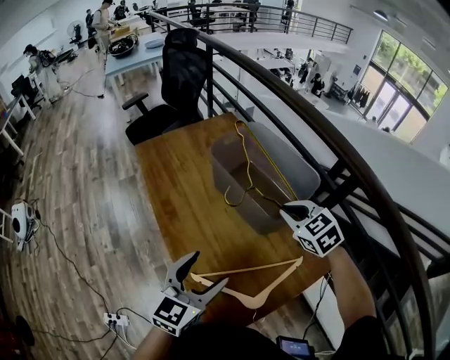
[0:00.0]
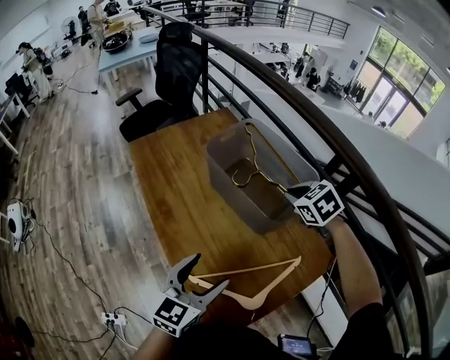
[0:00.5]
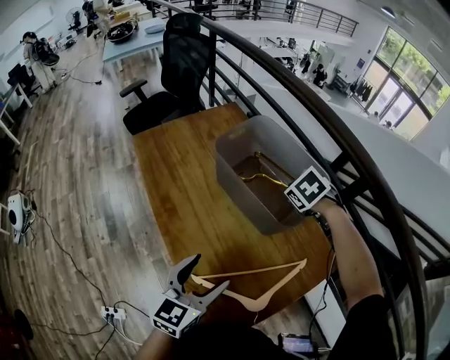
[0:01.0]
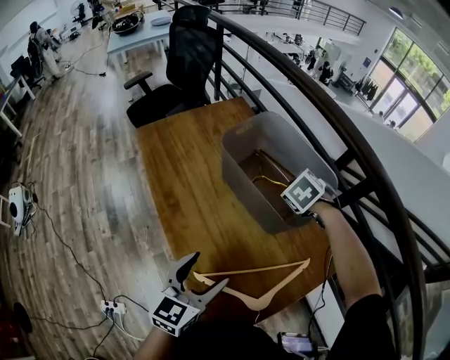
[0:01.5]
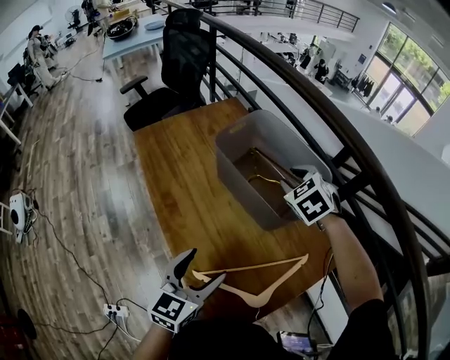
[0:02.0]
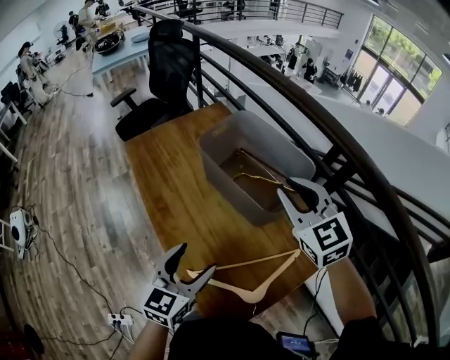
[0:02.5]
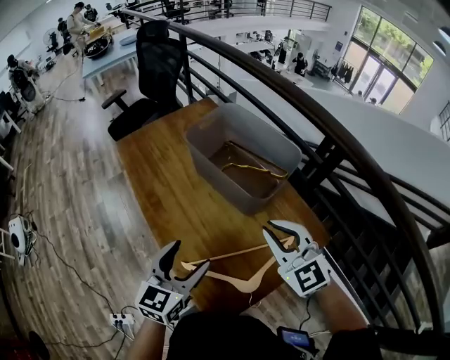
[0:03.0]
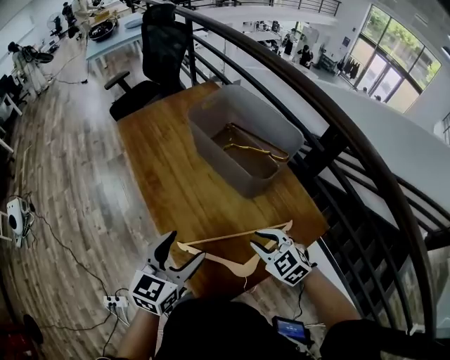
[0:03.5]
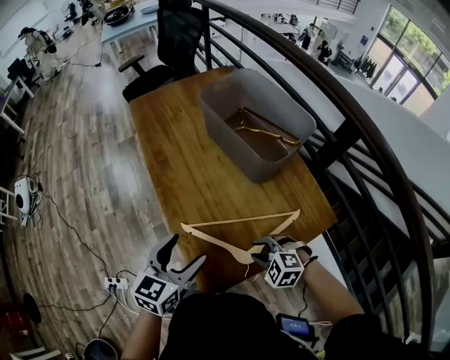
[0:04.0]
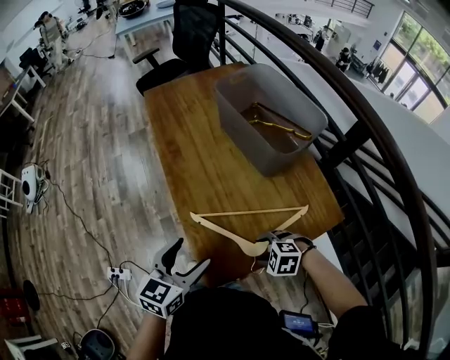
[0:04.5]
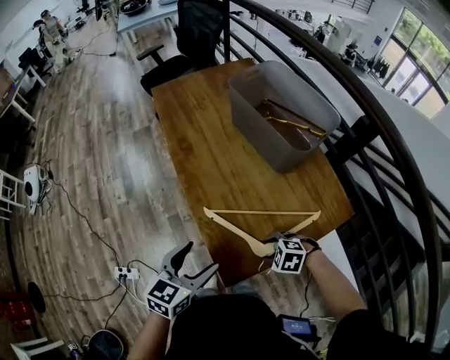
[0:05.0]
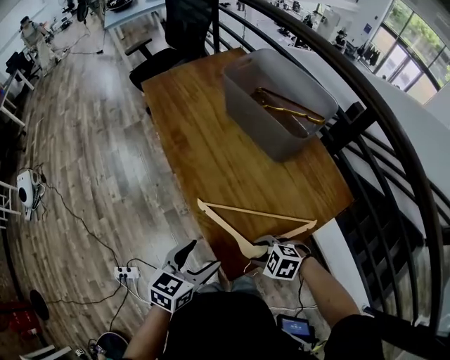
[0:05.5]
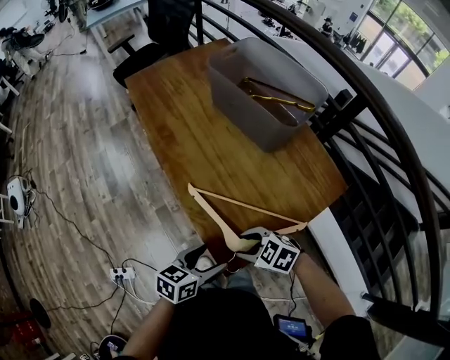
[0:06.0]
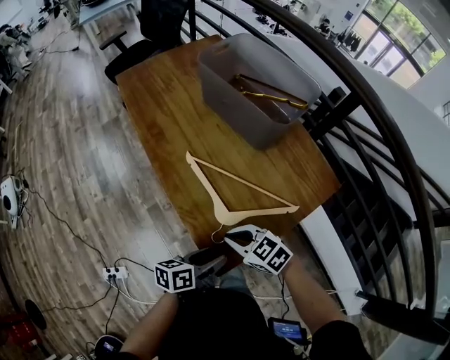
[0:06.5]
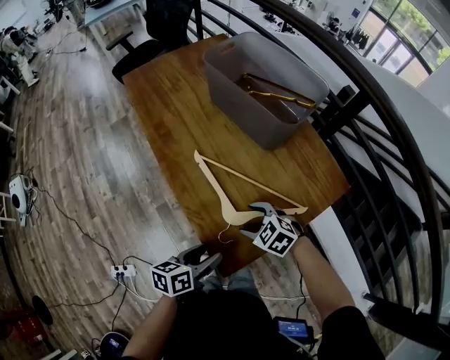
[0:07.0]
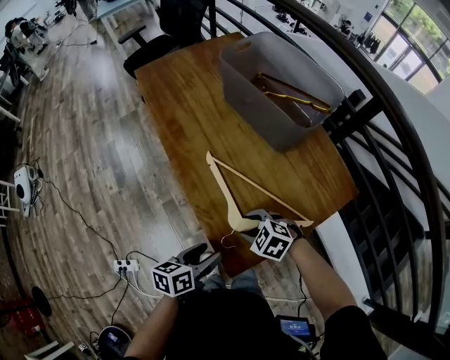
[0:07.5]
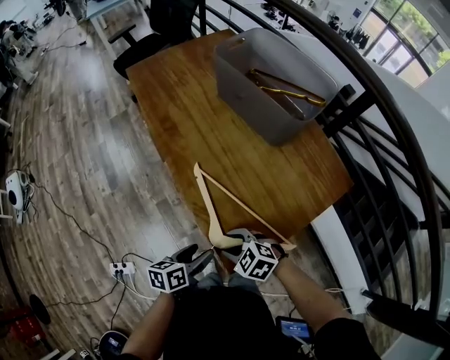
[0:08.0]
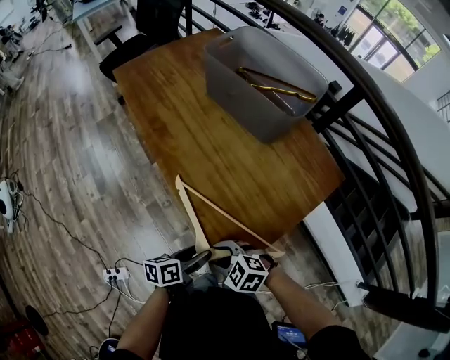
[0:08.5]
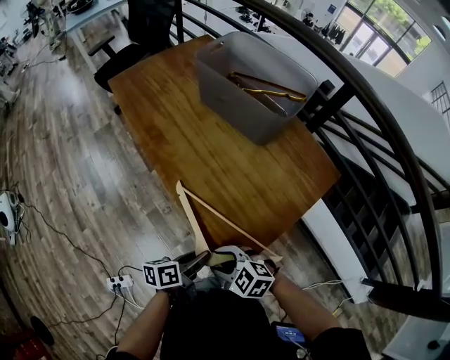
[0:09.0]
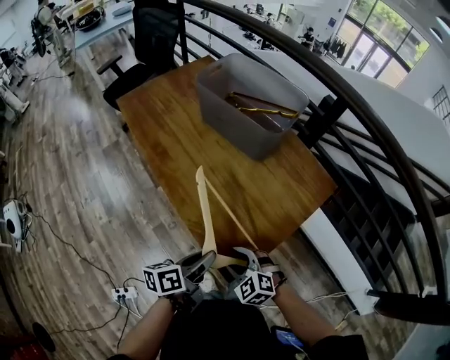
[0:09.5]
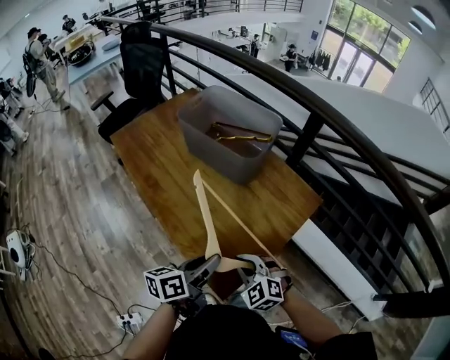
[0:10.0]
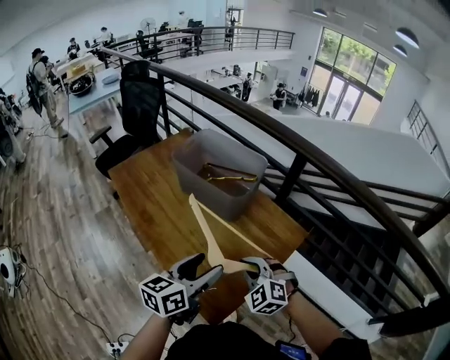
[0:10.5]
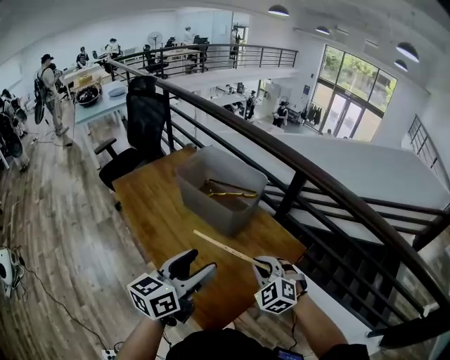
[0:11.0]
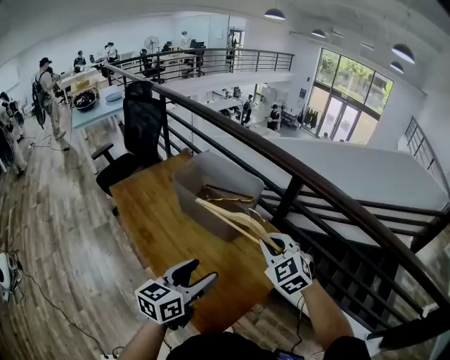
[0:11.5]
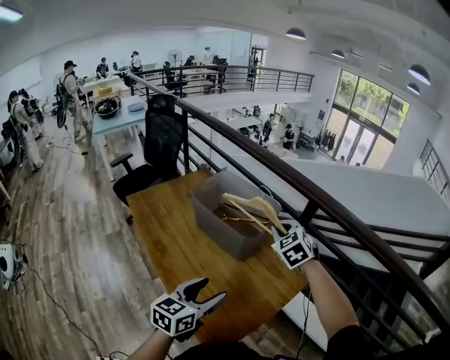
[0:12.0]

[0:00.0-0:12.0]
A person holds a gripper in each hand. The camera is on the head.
0:00.0 to 0:02.0: The right gripper heads forward, covering roughly 5 cm, and opens up.
0:02.0 to 0:04.0: The left gripper shifts by roughly 10 cm. Meanwhile the right gripper shifts by approximately 40 cm, and turns by some 40 degrees.
0:04.0 to 0:06.0: The right gripper ends up some 15 cm from where it was, and rotates some 30 degrees, while the left gripper travels downward by some 10 cm, and rotates roughly 30 degrees.
0:06.0 to 0:08.0: The left gripper shifts roughly 5 cm downward, and changes its angle by some 20 degrees. Meanwhile the right gripper moves about 5 cm, and closes, then reopens.
0:08.0 to 0:10.0: The right gripper ends up roughly 15 cm from where it was, changes its angle by roughly 40 degrees, and closes its fingers. The left gripper shifts about 15 cm upward, changes its angle by roughly 20 degrees, and closes.
0:10.0 to 0:12.0: The left gripper shifts about 10 cm upward and forward, turns by approximately 40 degrees, and opens its fingers. Meanwhile the right gripper heads forward and upward, covering roughly 35 cm, and changes its angle by about 20 degrees.

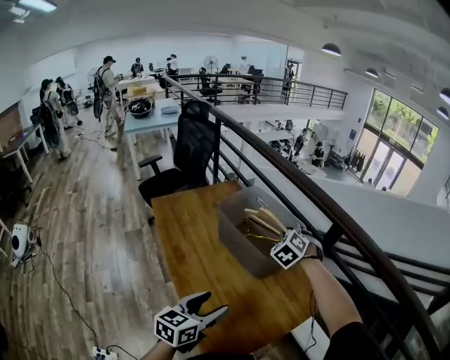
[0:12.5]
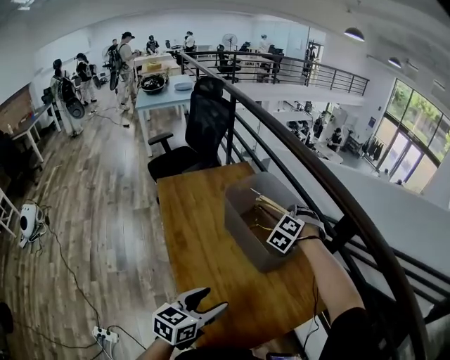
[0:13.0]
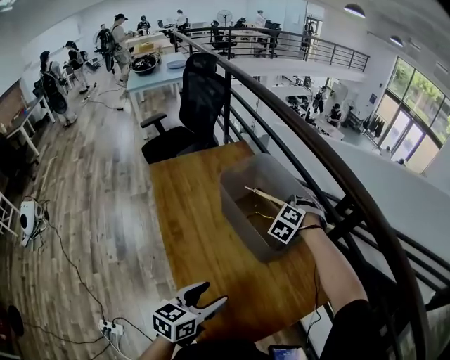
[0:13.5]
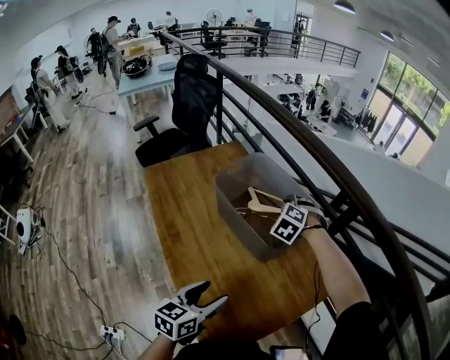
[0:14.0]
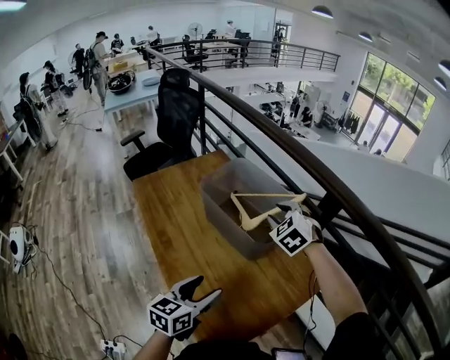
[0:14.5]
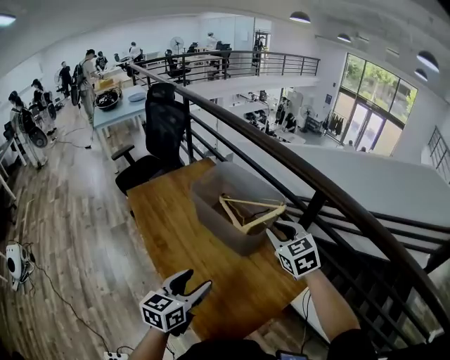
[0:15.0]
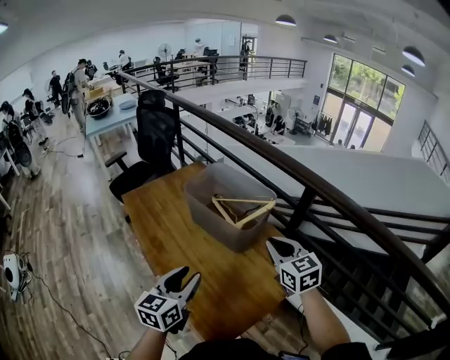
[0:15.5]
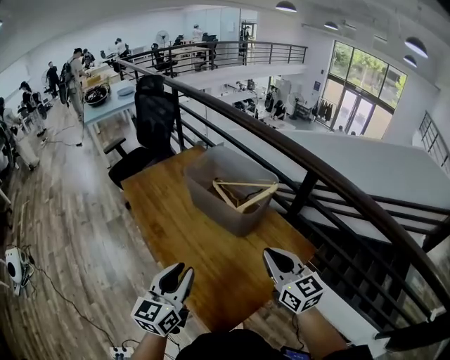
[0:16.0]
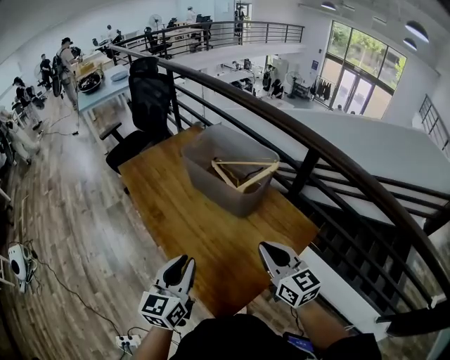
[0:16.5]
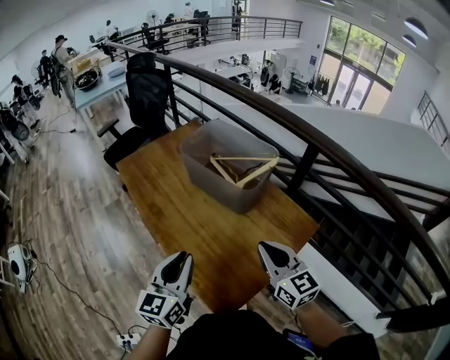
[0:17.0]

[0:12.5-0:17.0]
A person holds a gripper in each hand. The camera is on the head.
0:12.5 to 0:14.5: The left gripper is displaced forward by some 5 cm, while the right gripper reaches about 10 cm downward, then returns, and opens.
0:14.5 to 0:17.0: The right gripper shifts approximately 30 cm backward, tips its fingers upward by about 30 degrees, and closes up. Meanwhile the left gripper travels backward and to the left by some 10 cm, swivels roughly 20 degrees, and closes up.

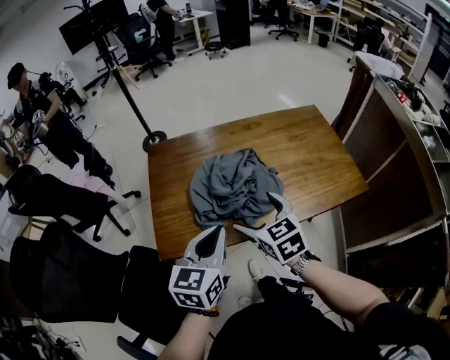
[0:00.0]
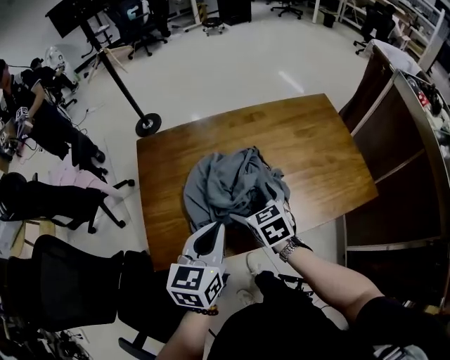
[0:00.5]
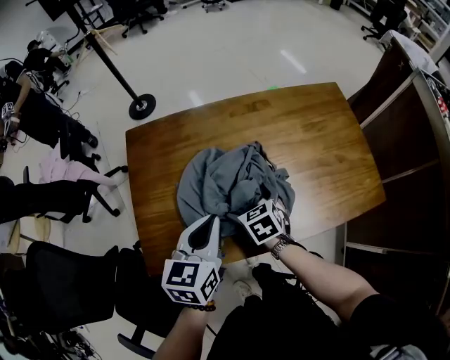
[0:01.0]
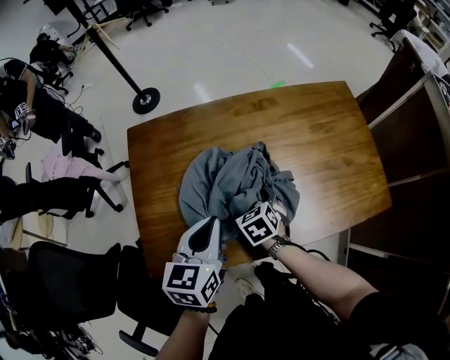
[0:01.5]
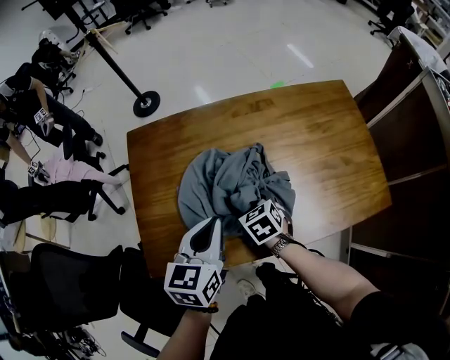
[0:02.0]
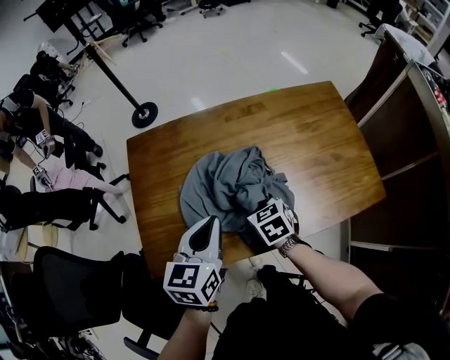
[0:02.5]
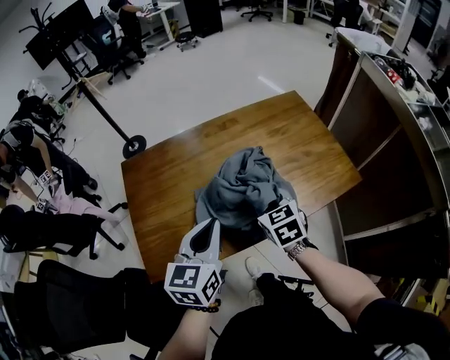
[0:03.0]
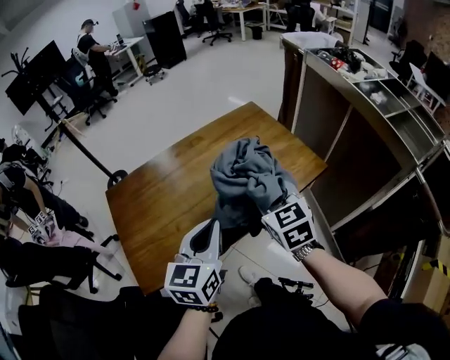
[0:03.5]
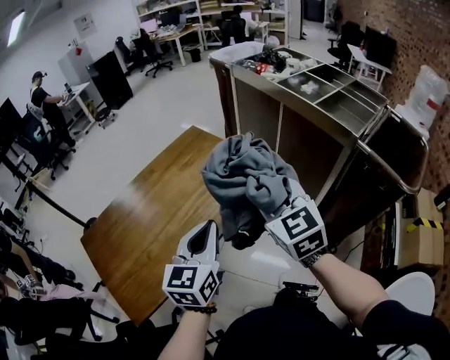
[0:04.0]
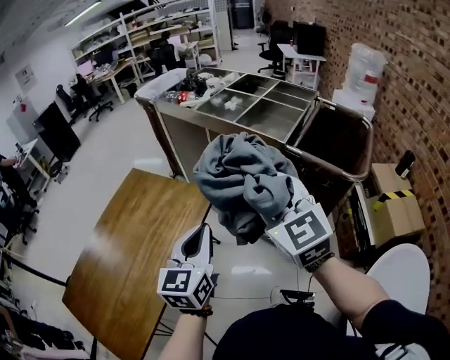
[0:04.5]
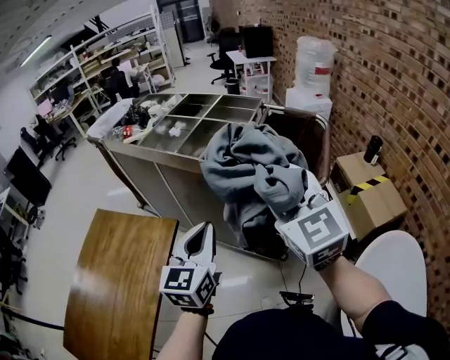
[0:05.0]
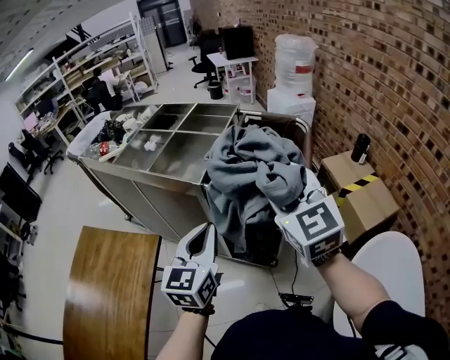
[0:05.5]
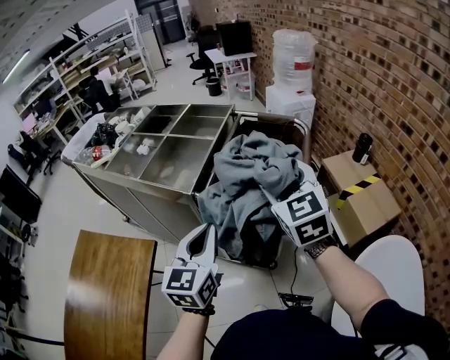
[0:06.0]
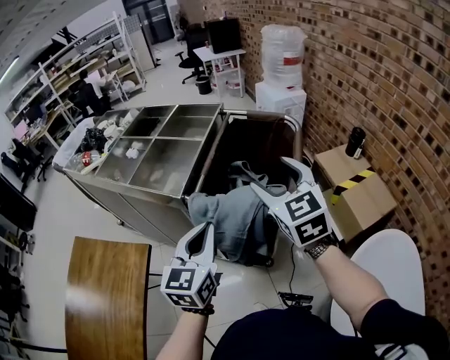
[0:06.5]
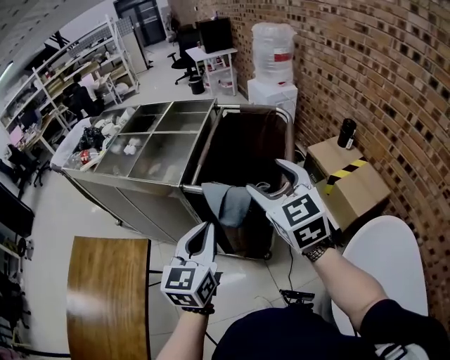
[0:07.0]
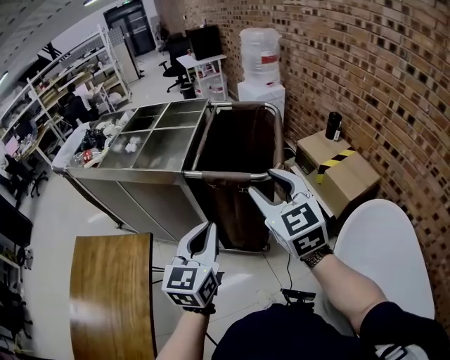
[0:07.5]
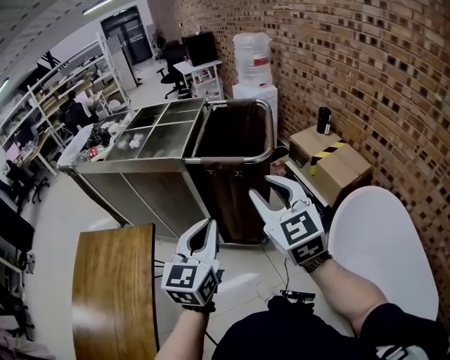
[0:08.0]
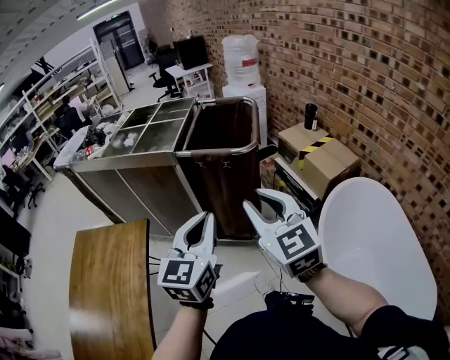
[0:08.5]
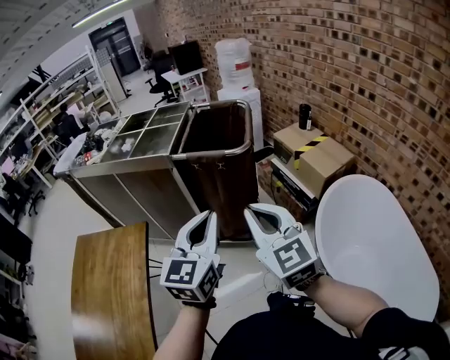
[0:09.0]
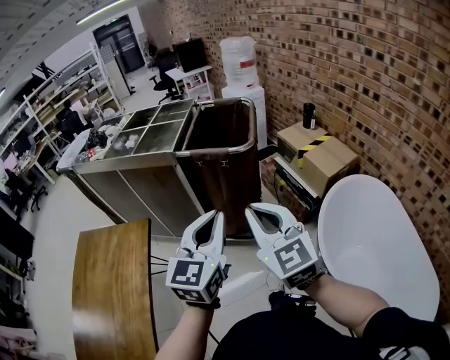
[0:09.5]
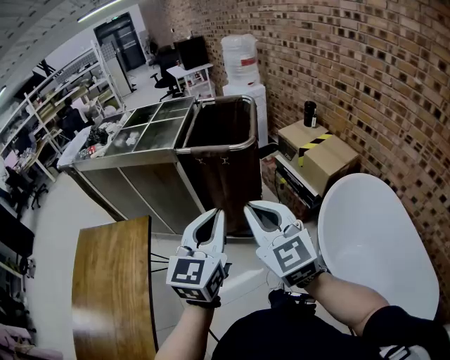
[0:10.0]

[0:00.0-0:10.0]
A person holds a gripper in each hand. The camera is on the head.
0:00.0 to 0:02.0: Both grippers travel together forward and downward, some 35 cm. The right gripper swivels approximately 30 degrees, and closes up.
0:02.0 to 0:04.0: The right gripper shifts about 50 cm upward, and angles its fingers upward, by some 40 degrees; the left gripper changes place by about 40 cm, and rotates some 40 degrees.
0:04.0 to 0:06.0: The two grippers travel together, some 50 cm. The right gripper rotates about 40 degrees; the left gripper turns by roughly 30 degrees.
0:06.0 to 0:08.0: The two grippers go some 25 cm backward.
0:08.0 to 0:10.0: The right gripper is displaced backward by about 15 cm. Meanwhile the left gripper travels backward and to the right by roughly 10 cm.
